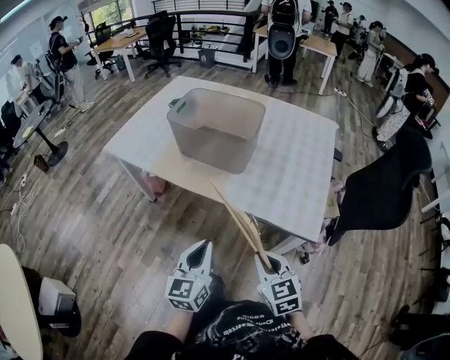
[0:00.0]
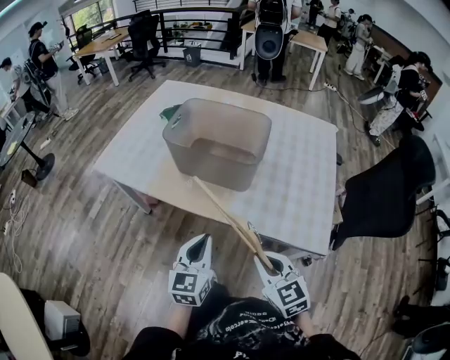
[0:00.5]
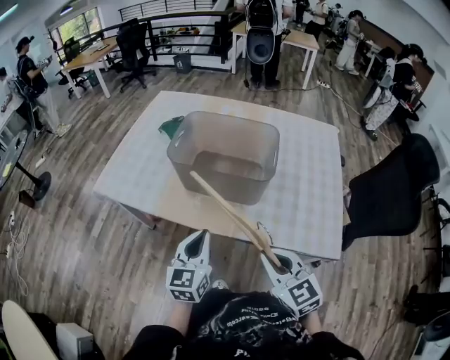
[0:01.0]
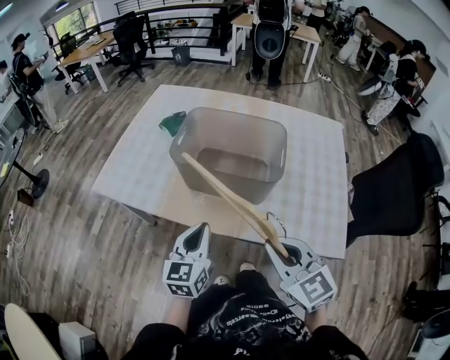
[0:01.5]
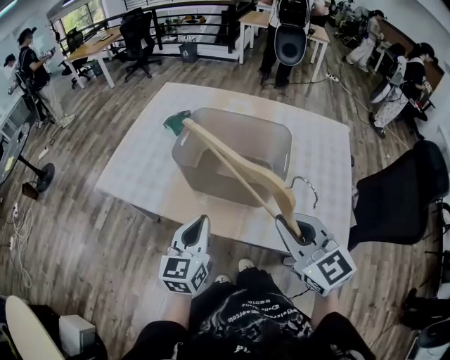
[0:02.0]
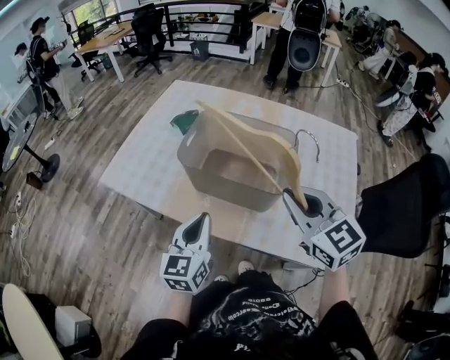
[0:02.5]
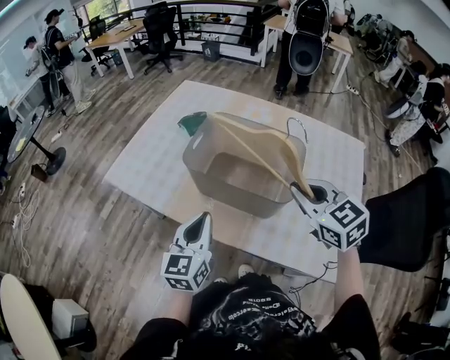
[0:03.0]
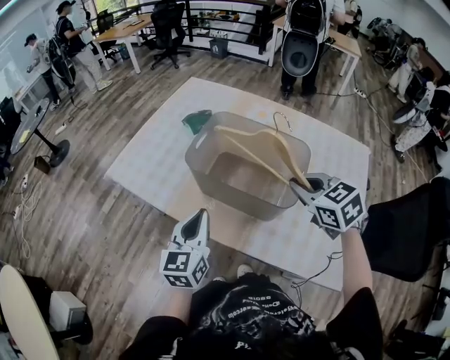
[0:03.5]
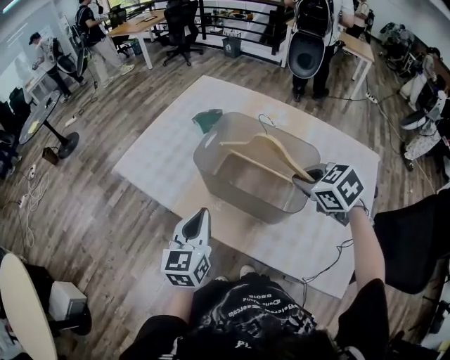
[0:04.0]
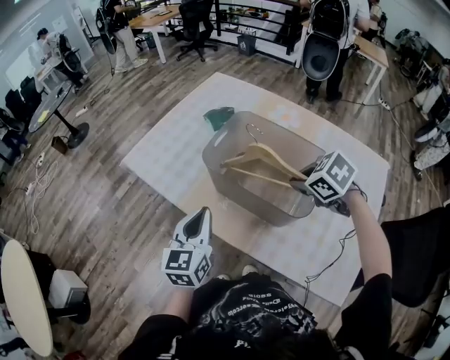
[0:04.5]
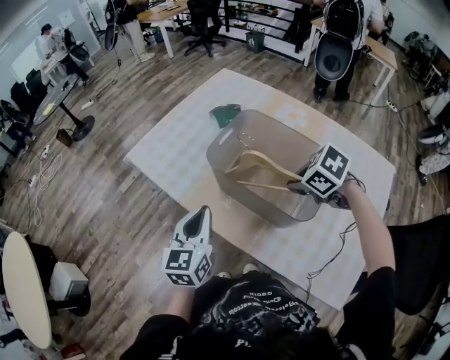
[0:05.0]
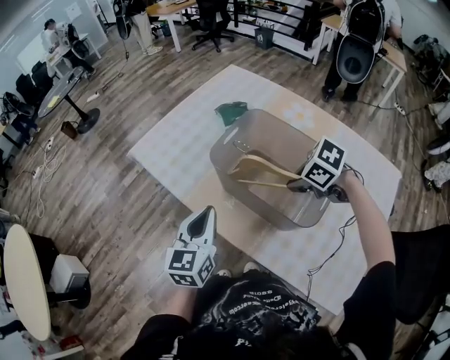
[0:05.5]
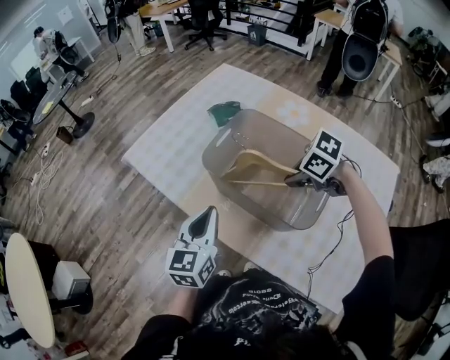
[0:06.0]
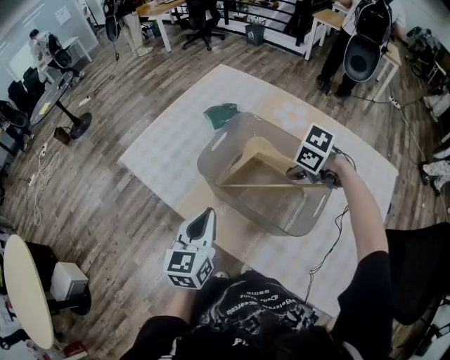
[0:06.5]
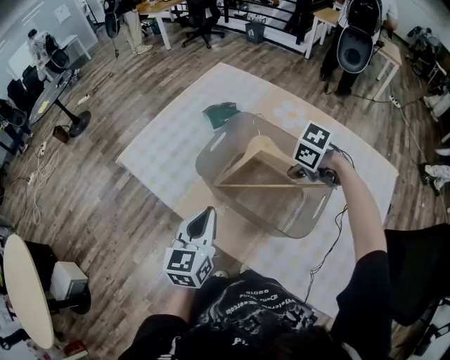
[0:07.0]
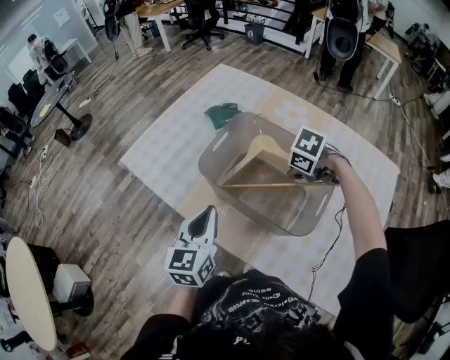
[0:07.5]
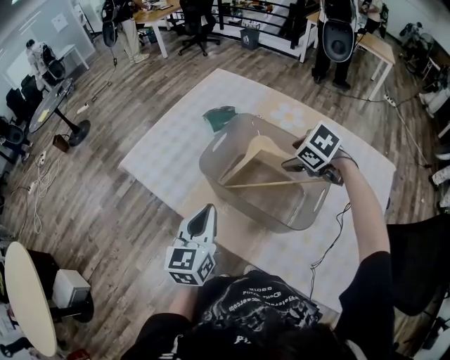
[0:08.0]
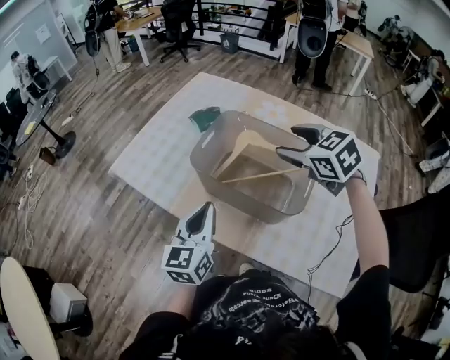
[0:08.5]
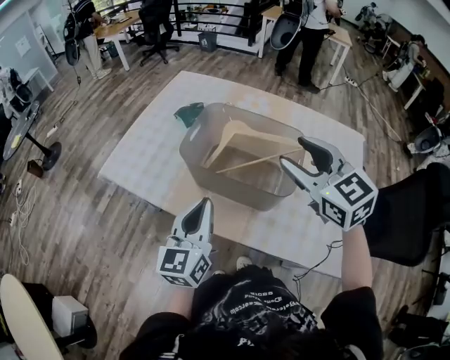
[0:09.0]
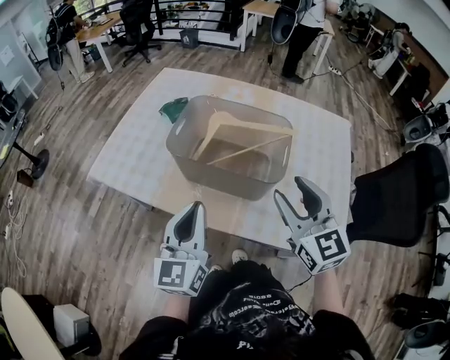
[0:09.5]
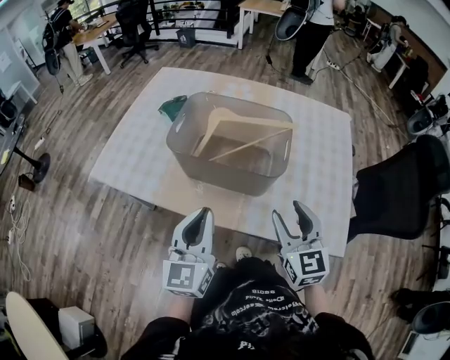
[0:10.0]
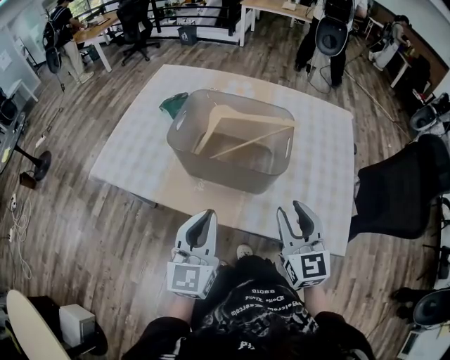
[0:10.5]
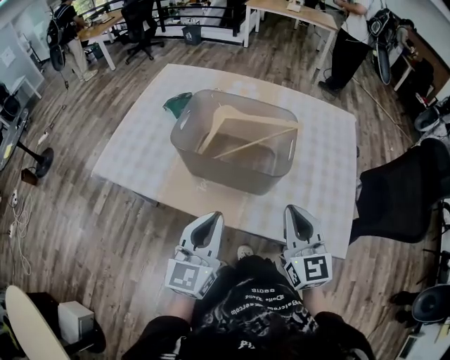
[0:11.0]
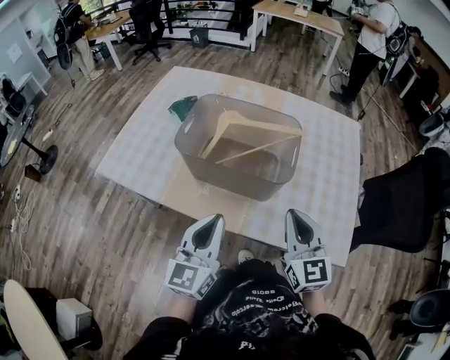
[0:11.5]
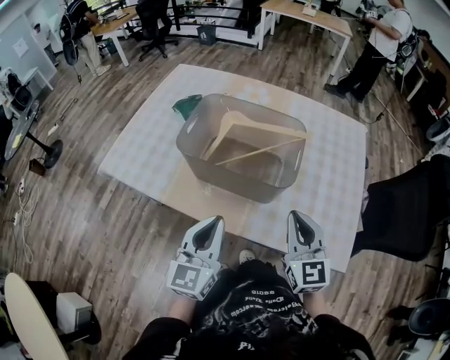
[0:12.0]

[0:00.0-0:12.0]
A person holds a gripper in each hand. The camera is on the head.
0:00.0 to 0:02.0: The right gripper travels forward and upward by approximately 35 cm. The left gripper shifts some 35 cm forward.
0:02.0 to 0:04.0: The left gripper shifts some 5 cm forward. The right gripper goes approximately 20 cm forward and to the right, and angles its fingers downward, by roughly 40 degrees.
0:04.0 to 0:06.0: The right gripper moves some 10 cm, and turns by approximately 40 degrees.
0:06.0 to 0:08.0: The right gripper ends up some 10 cm from where it was, rotates roughly 20 degrees, and opens up.
0:08.0 to 0:10.0: The right gripper moves about 15 cm upward and comes back, and points its fingers some 50 degrees further upward. The left gripper shifts by roughly 15 cm.
0:10.0 to 0:12.0: The right gripper closes.

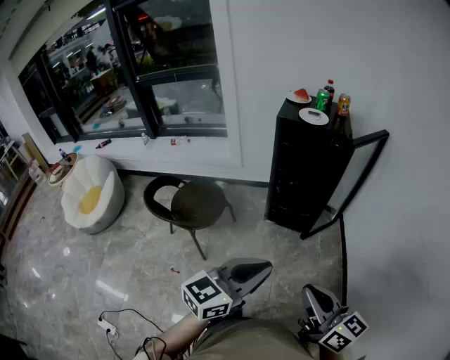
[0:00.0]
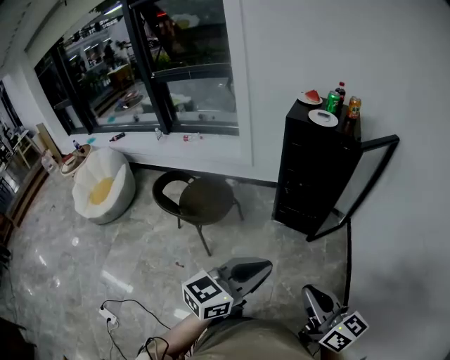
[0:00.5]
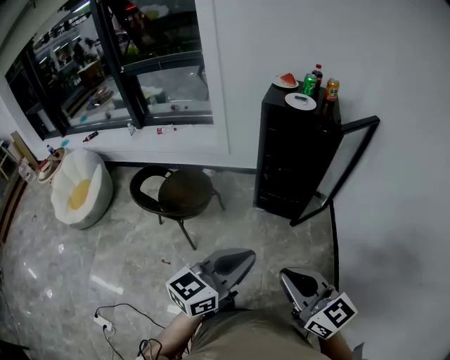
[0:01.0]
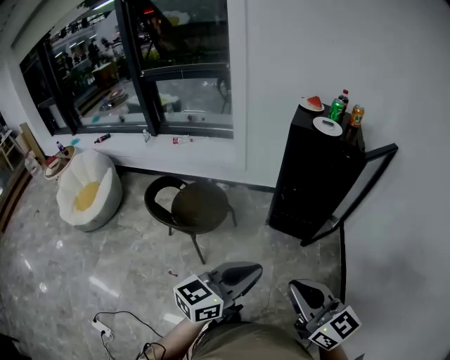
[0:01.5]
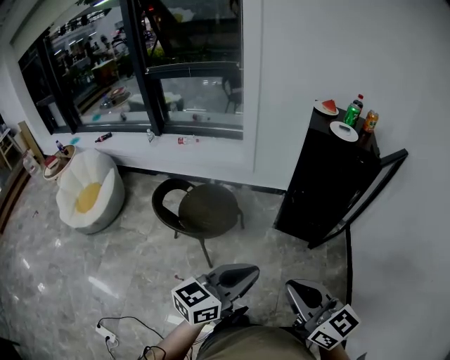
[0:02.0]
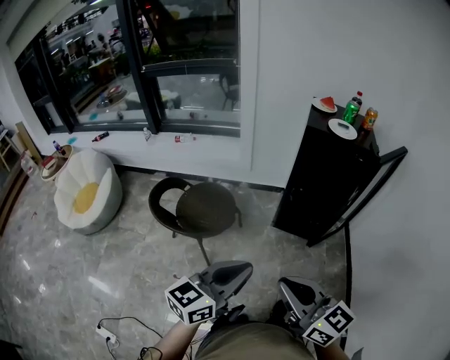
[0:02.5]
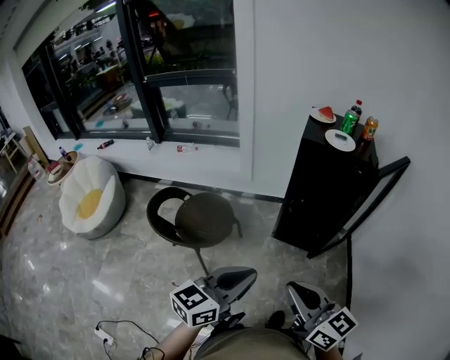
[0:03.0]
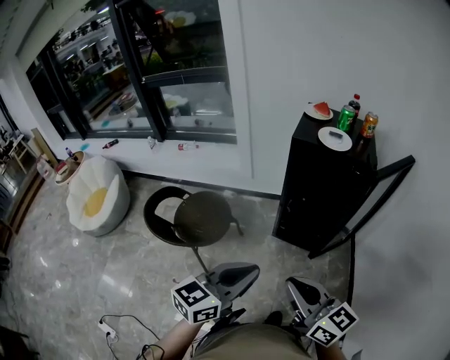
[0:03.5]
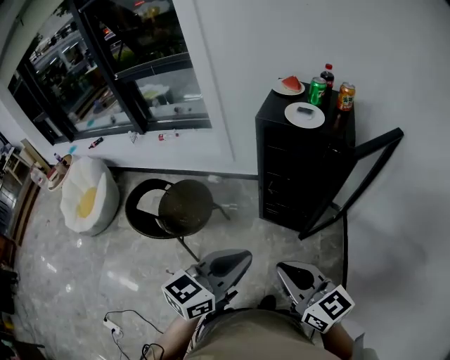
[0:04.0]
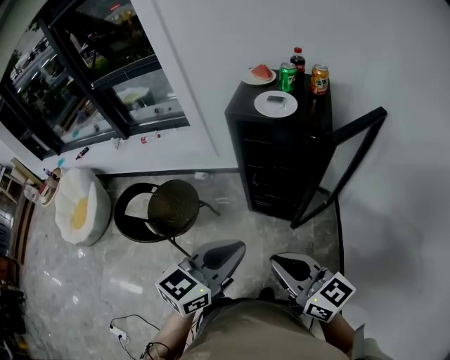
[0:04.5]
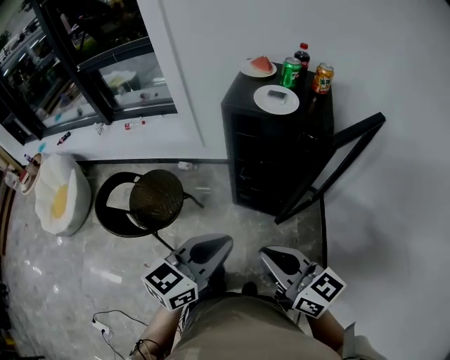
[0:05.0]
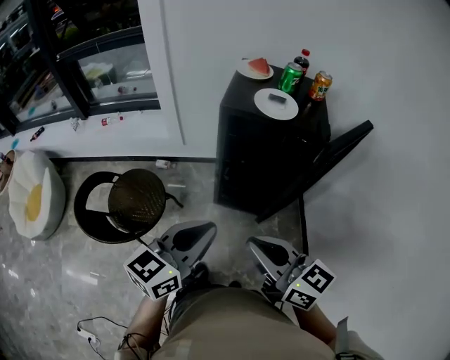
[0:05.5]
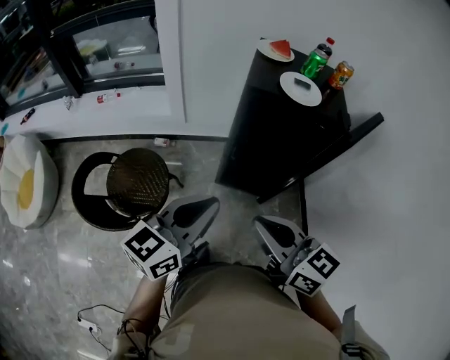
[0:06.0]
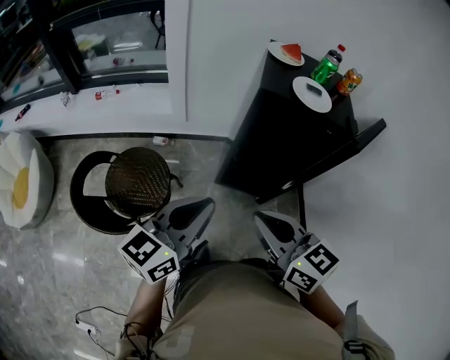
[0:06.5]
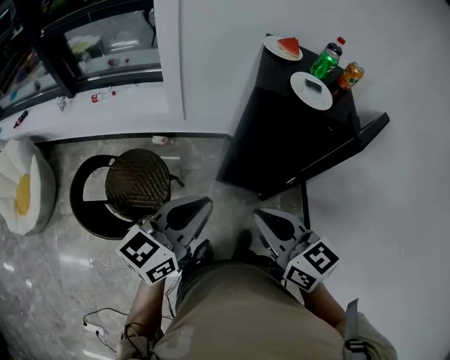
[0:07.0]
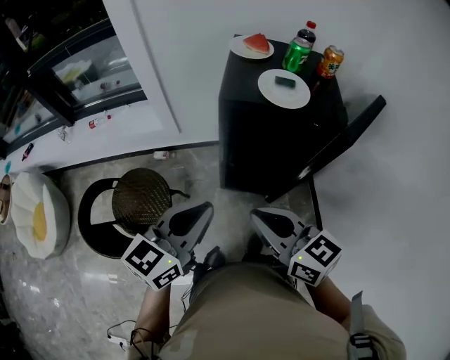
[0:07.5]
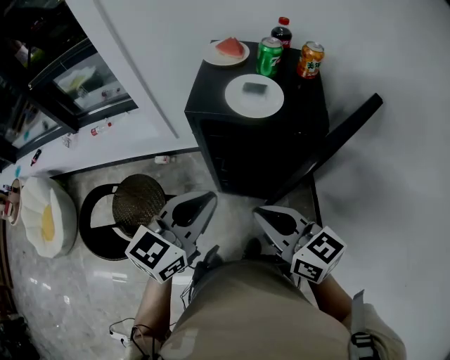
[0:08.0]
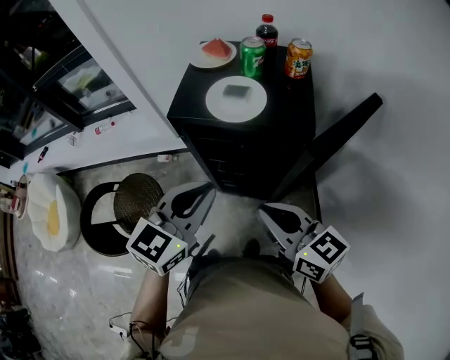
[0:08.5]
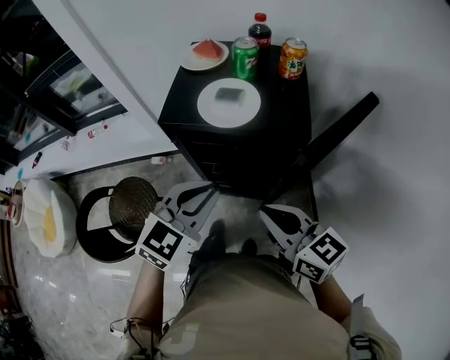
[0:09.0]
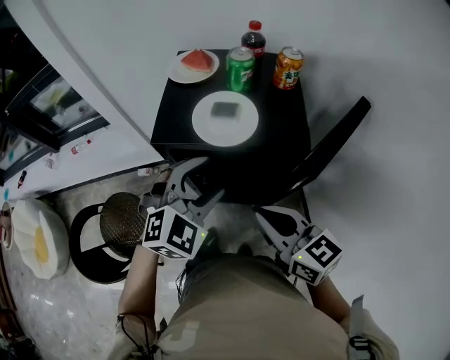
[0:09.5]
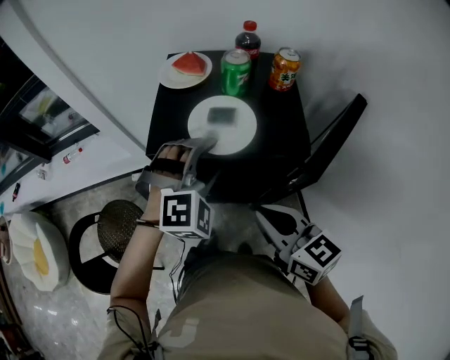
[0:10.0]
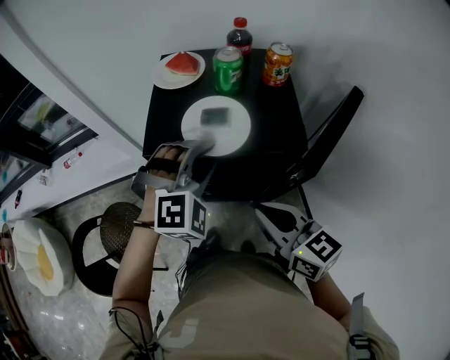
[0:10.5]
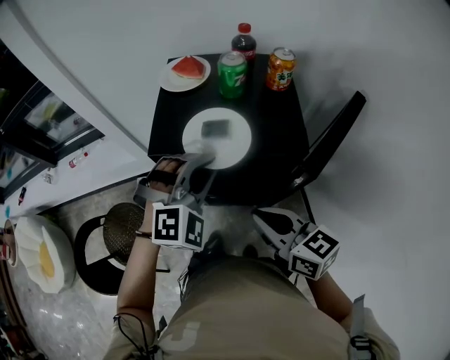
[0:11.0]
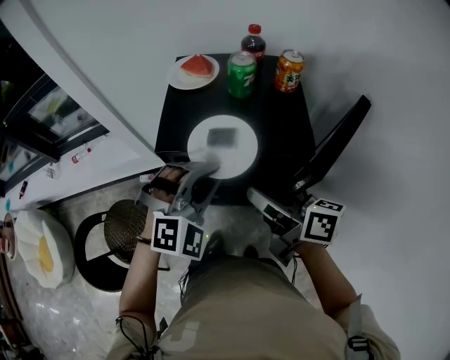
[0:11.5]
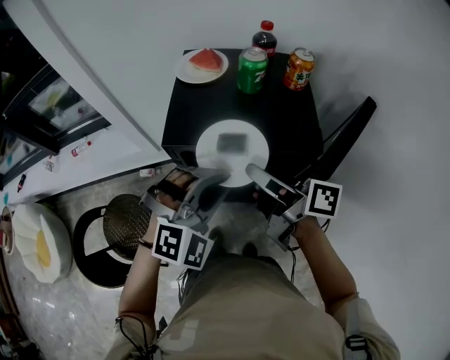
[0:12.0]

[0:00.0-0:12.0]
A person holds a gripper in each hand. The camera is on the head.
0:00.0 to 0:02.0: Both grippers move to the left, roughly 15 cm.
0:02.0 to 0:04.0: The two grippers go roughly 25 cm to the right and forward.
0:04.0 to 0:06.0: Both grippers travel together forward and to the left, approximately 15 cm.
0:06.0 to 0:08.0: The two grippers go about 15 cm to the right and forward.
0:08.0 to 0:10.0: The left gripper heads forward and to the right, covering roughly 20 cm, rolls clockwise, seen from behind, by some 70 degrees, and opens. Meanwhile the right gripper is displaced forward and to the right by approximately 10 cm.
0:10.0 to 0:12.0: The left gripper heads backward, covering some 5 cm, and closes its fingers, while the right gripper shifts roughly 10 cm forward, rolls clockwise, seen from behind, by roughly 50 degrees, and opens.

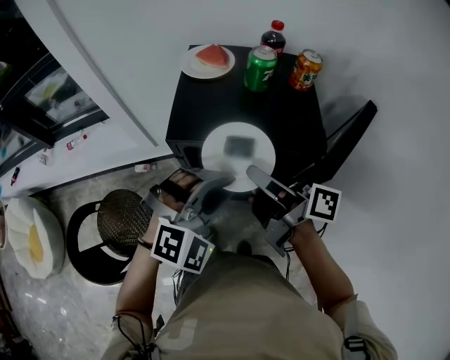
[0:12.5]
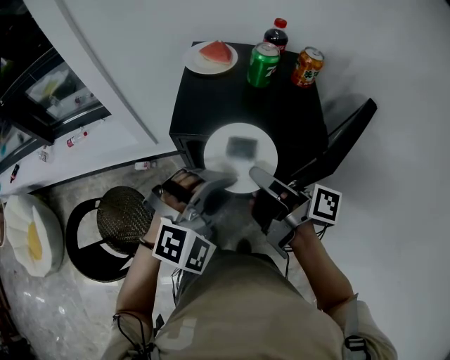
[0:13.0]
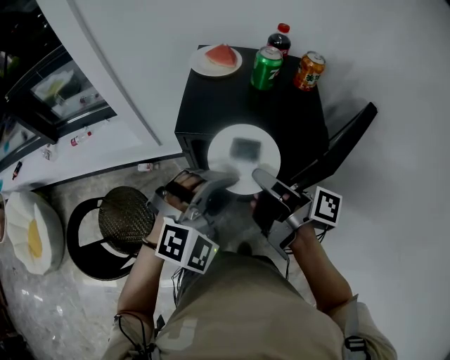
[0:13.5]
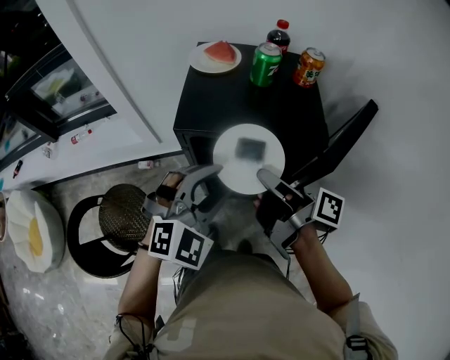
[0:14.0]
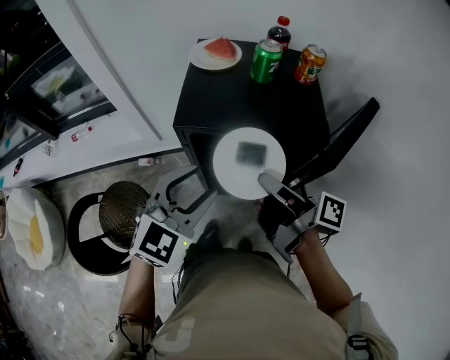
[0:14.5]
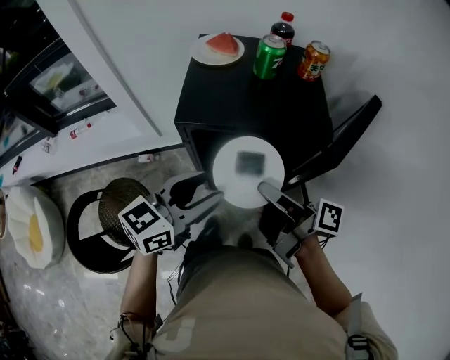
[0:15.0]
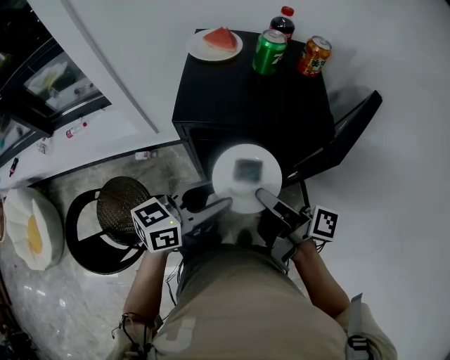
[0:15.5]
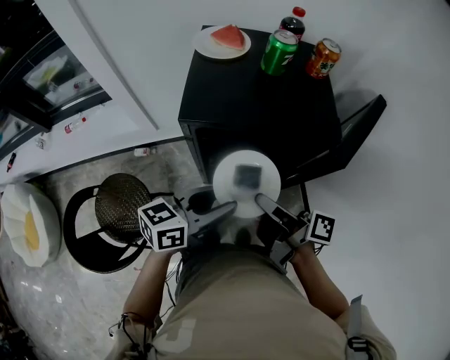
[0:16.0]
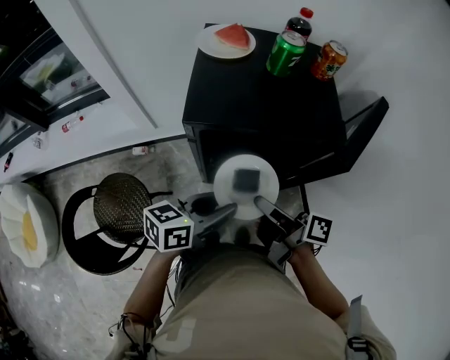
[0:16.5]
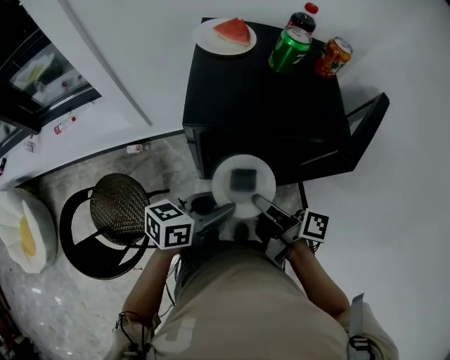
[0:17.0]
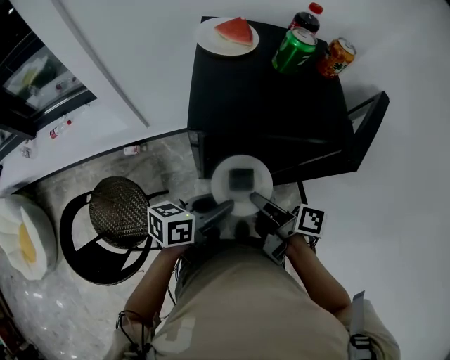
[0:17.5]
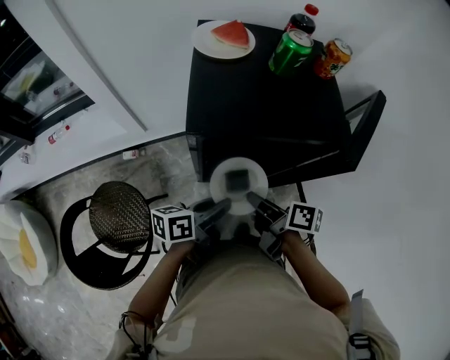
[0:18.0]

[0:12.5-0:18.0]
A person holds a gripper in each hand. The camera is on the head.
0:12.5 to 0:14.5: The left gripper goes some 5 cm to the left, swivels roughly 40 degrees, and opens up.
0:14.5 to 0:16.0: The grippers both shift downward by roughly 5 cm. The left gripper rolls counterclockwise, seen from behind, by some 50 degrees.
0:16.0 to 0:18.0: The two grippers go about 10 cm downward. The left gripper turns by roughly 30 degrees, and closes. The right gripper turns by some 20 degrees.
